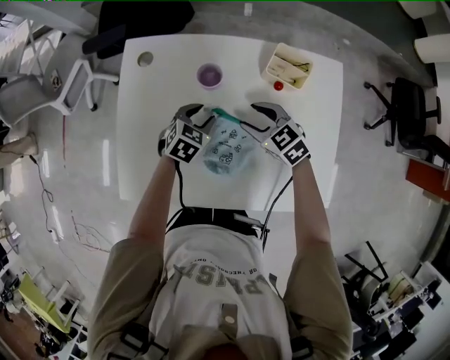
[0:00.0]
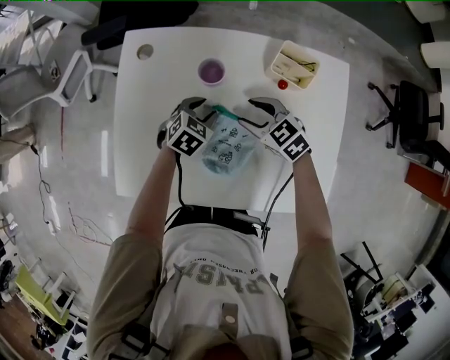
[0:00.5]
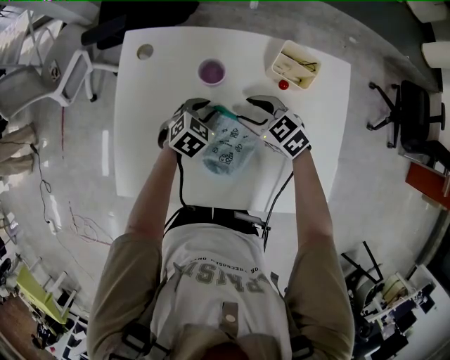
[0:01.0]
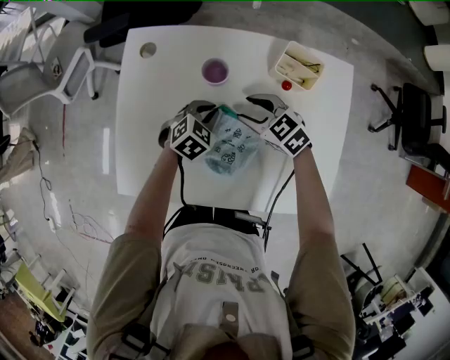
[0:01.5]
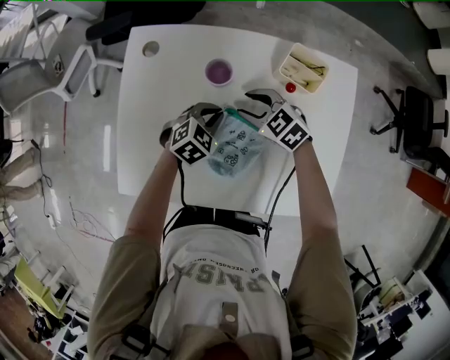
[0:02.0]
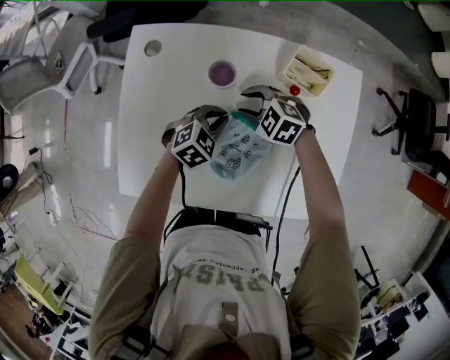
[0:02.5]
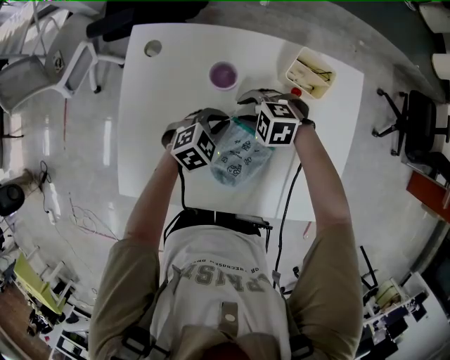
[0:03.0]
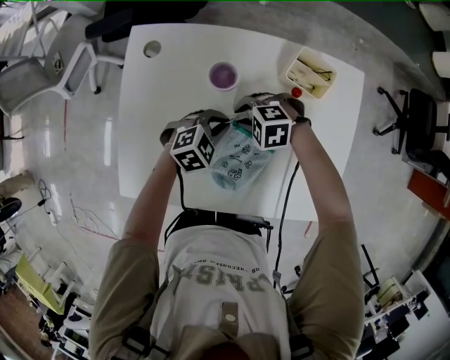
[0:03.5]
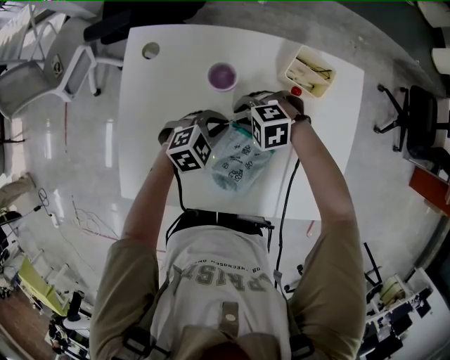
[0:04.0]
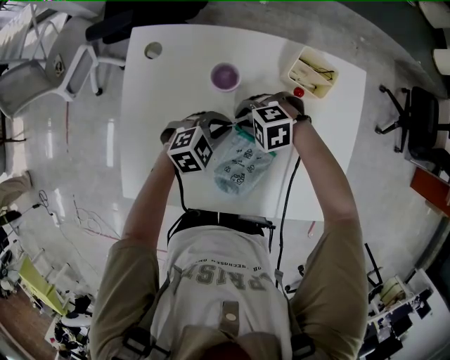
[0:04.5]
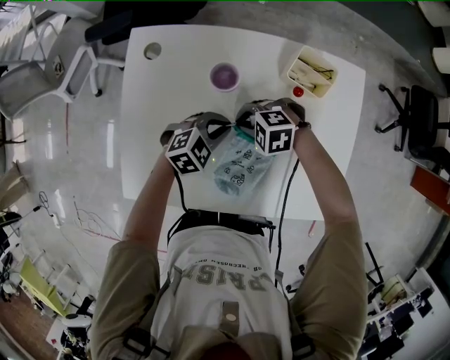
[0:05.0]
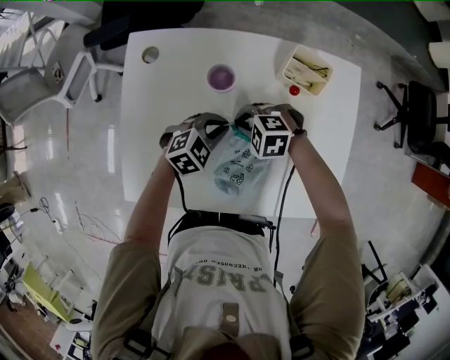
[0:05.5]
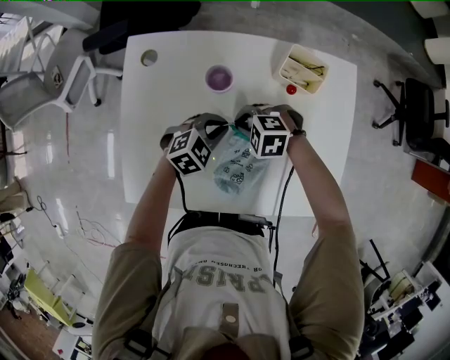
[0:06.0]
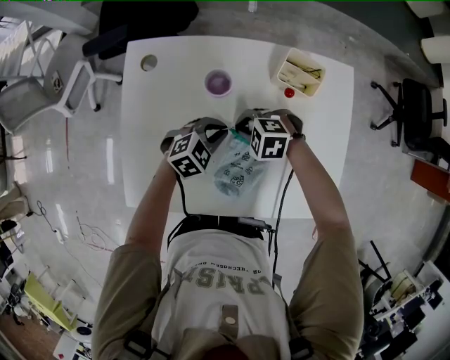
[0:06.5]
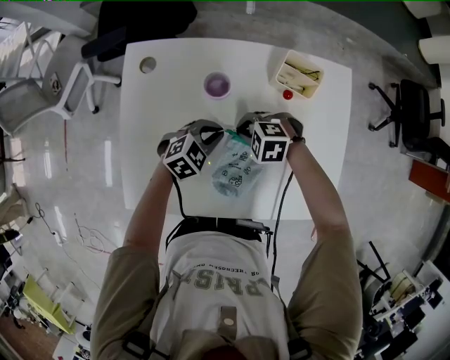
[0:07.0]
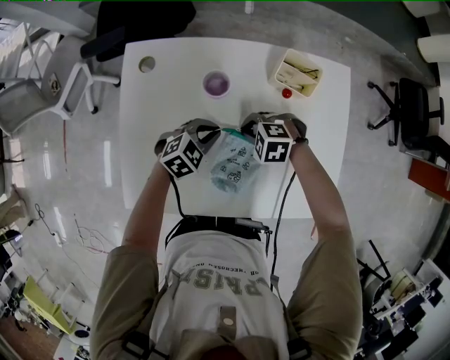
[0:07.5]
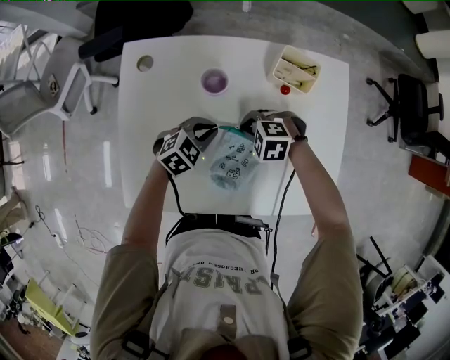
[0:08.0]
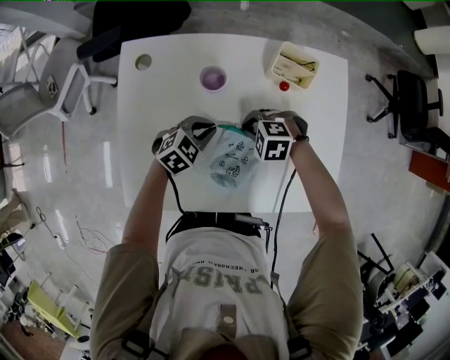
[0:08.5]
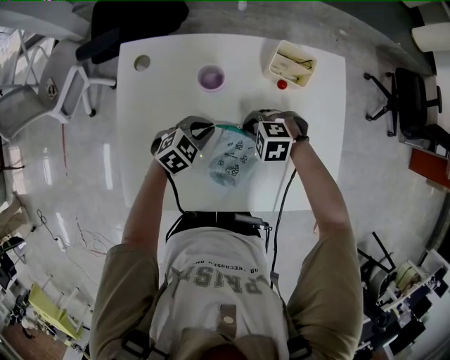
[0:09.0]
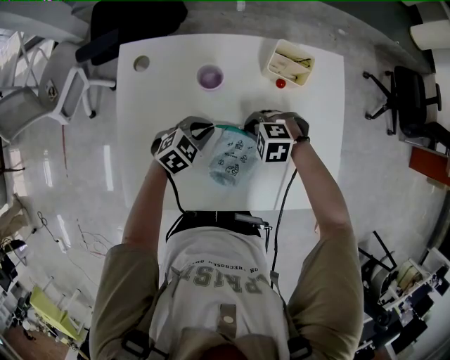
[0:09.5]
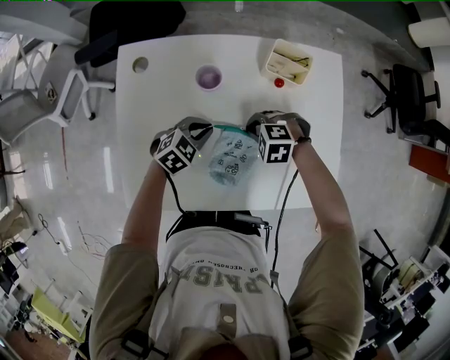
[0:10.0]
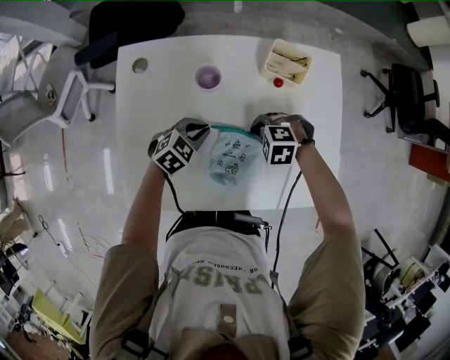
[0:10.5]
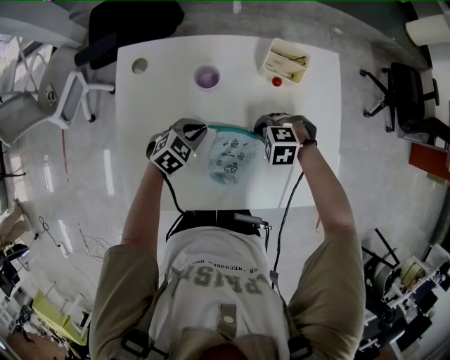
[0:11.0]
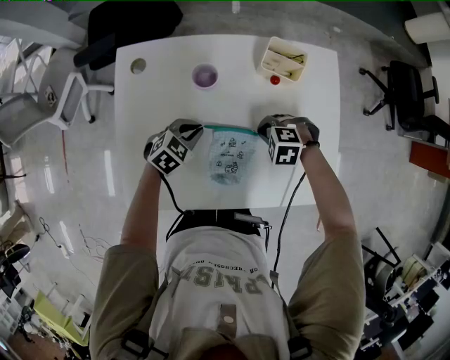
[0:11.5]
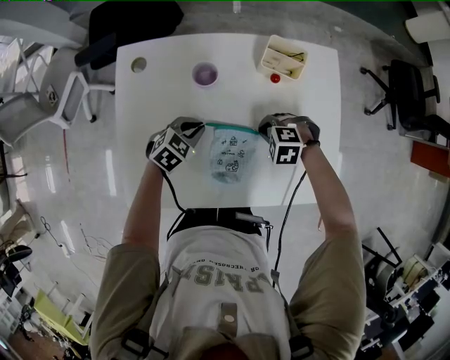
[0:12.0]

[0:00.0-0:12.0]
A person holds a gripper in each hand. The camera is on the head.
0:00.0 to 0:02.0: The left gripper closes, while the right gripper ends up about 5 cm from where it was.
0:02.0 to 0:04.0: The right gripper shifts by approximately 5 cm, turns by some 40 degrees, and closes up.
0:04.0 to 0:06.0: The right gripper closes its fingers.
0:06.0 to 0:08.0: The grippers make only small movements.
0:08.0 to 0:10.0: The grippers move only a little.
0:10.0 to 0:12.0: The right gripper changes place by approximately 5 cm.

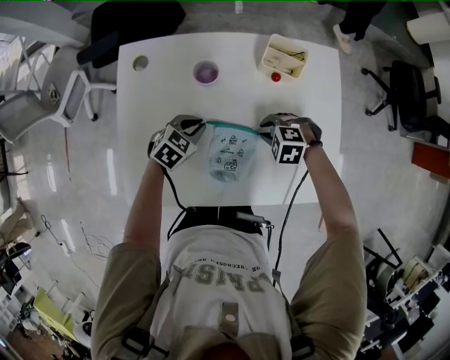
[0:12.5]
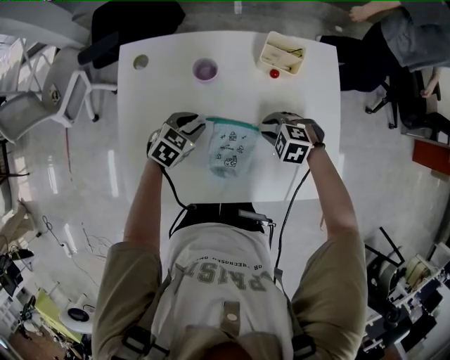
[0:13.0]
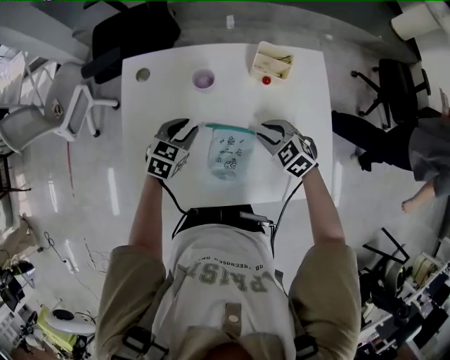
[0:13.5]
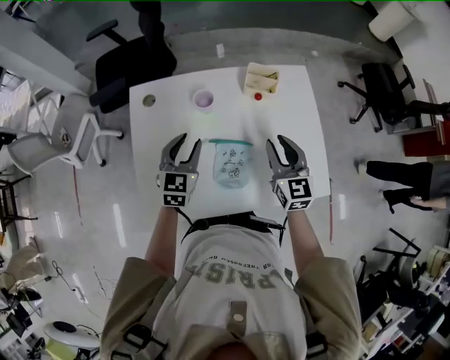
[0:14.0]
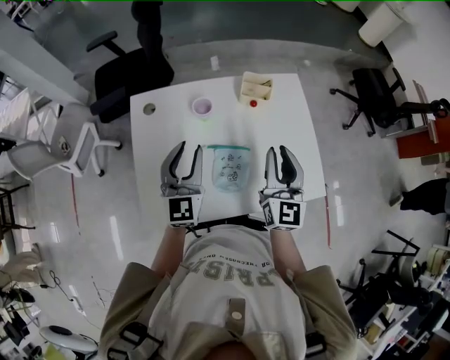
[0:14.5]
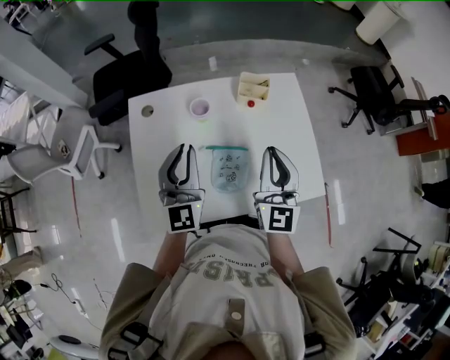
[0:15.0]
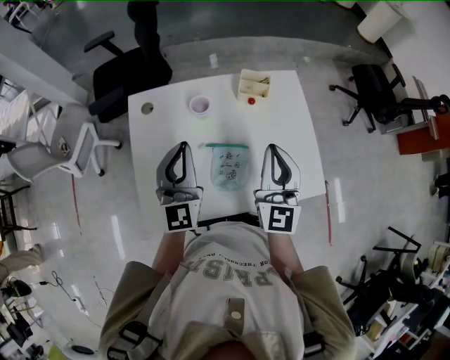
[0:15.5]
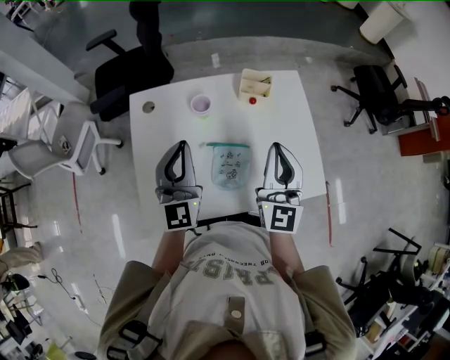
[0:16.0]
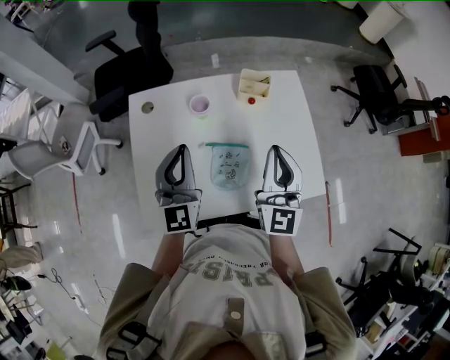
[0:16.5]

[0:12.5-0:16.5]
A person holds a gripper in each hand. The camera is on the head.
0:12.5 to 0:14.5: The two grippers go some 30 cm upward. The right gripper angles its fingers upward, by some 70 degrees. The left gripper angles its fingers upward, by roughly 50 degrees, and opens up.
0:14.5 to 0:16.5: The right gripper shifts about 5 cm upward, and closes its fingers, while the left gripper closes.

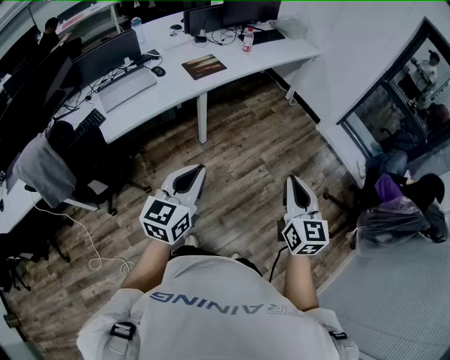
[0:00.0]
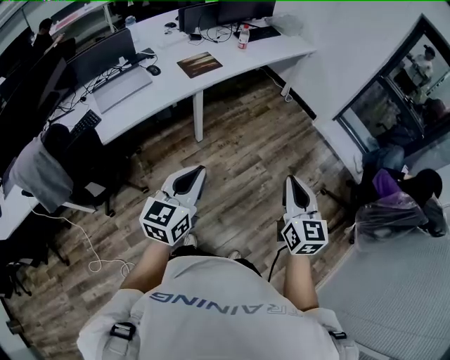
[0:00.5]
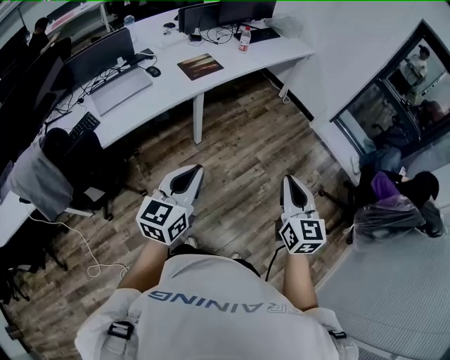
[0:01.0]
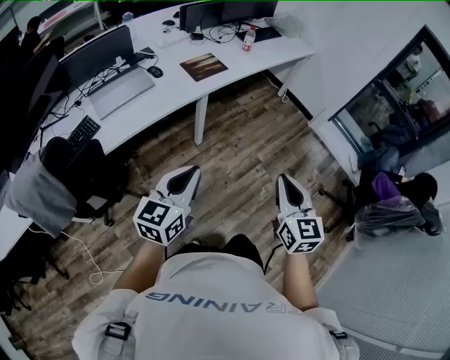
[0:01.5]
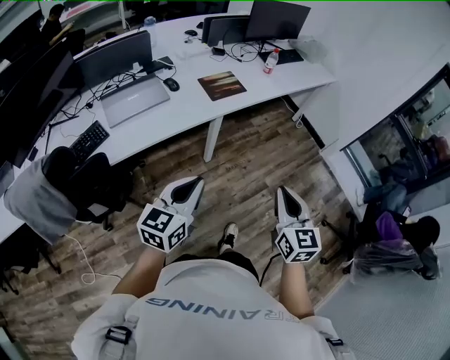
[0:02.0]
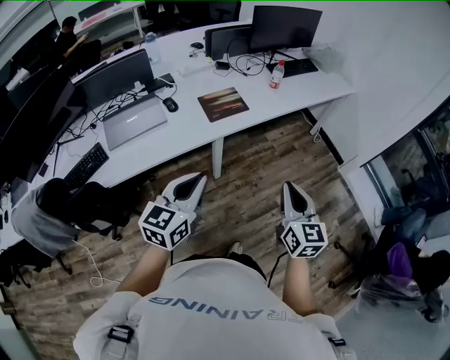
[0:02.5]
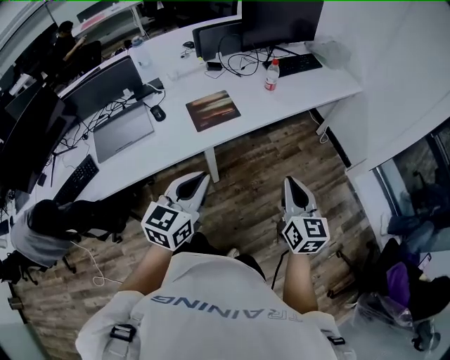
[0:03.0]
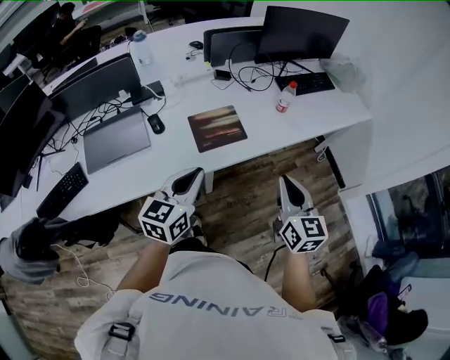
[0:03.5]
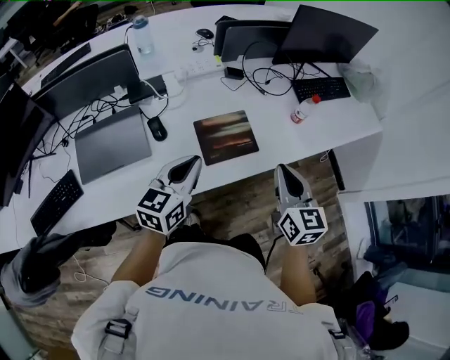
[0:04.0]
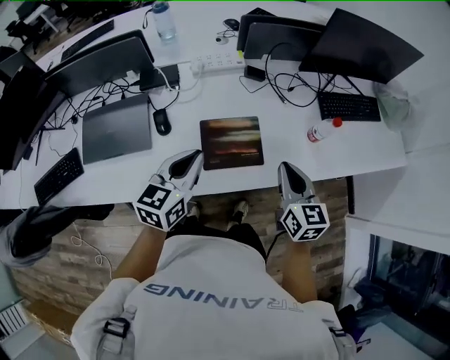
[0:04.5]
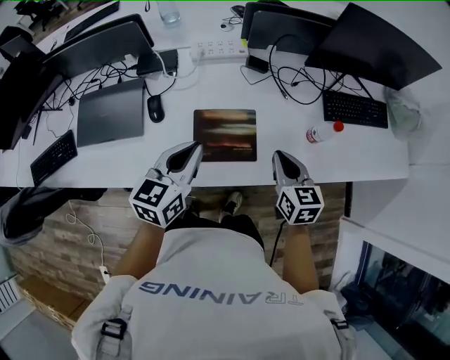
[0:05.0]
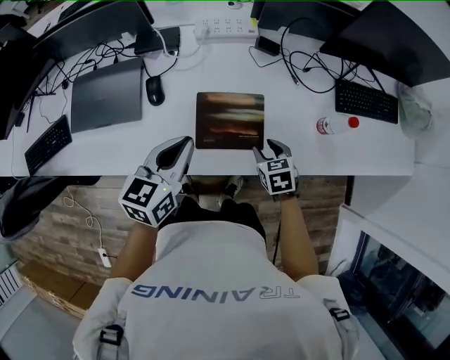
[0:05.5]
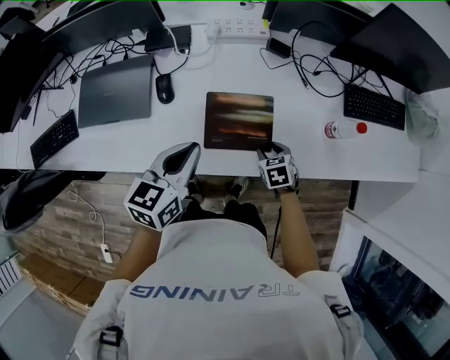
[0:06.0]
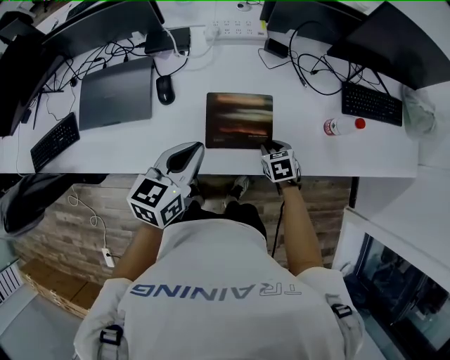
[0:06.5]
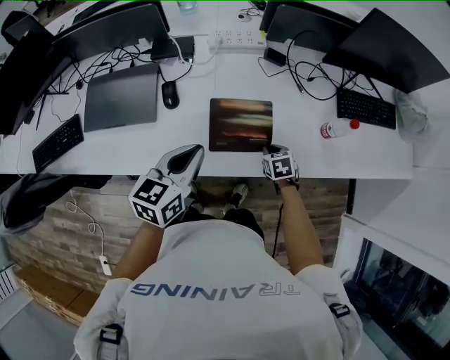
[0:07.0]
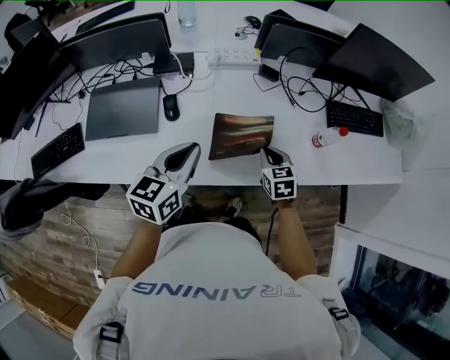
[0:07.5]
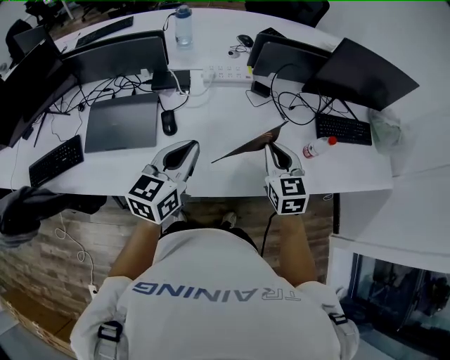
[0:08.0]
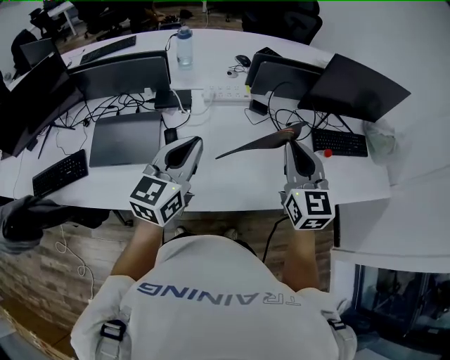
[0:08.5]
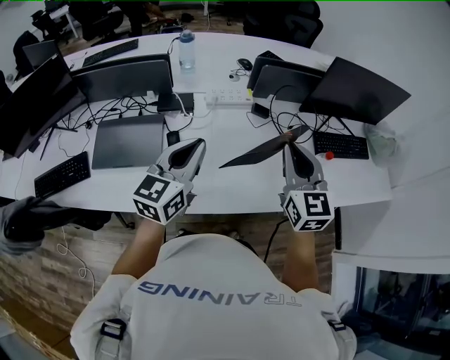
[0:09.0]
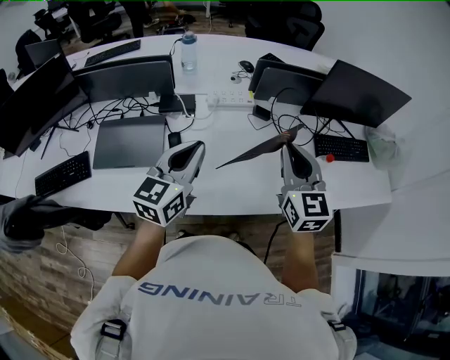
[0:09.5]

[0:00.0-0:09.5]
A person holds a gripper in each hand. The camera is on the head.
0:00.0 to 0:02.0: Both grippers travel together to the left and forward, approximately 20 cm.
0:02.0 to 0:04.0: The pair of grippers is taken forward, approximately 50 cm.
0:04.0 to 0:05.5: The right gripper heads downward and forward, covering about 30 cm, angles its fingers downward, by some 40 degrees, and opens up. Meanwhile the left gripper moves forward, approximately 5 cm, and swivels roughly 20 degrees.
0:05.5 to 0:07.5: The left gripper shifts by about 5 cm. Meanwhile the right gripper heads upward, covering roughly 5 cm, and closes.
0:07.5 to 0:09.5: The left gripper shifts approximately 10 cm upward. The right gripper is displaced upward by some 30 cm, and tips its fingers upward by some 40 degrees.

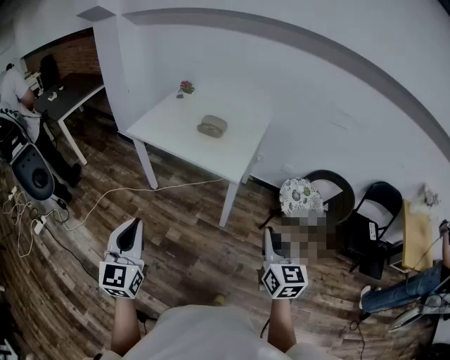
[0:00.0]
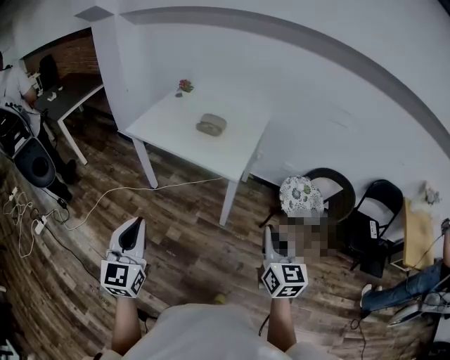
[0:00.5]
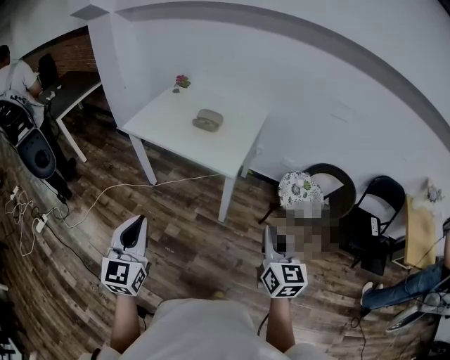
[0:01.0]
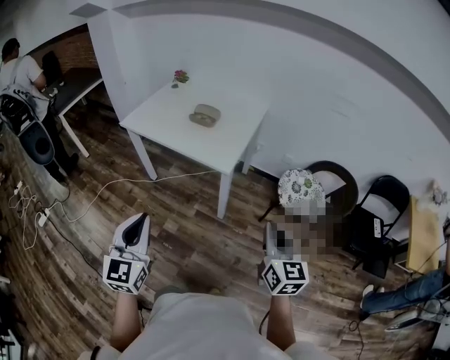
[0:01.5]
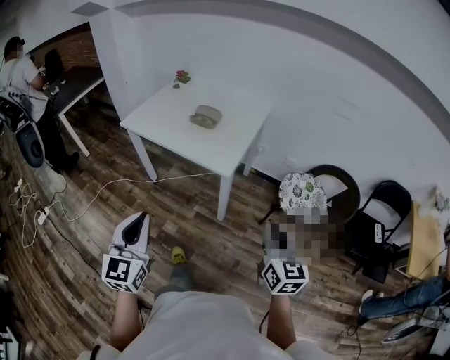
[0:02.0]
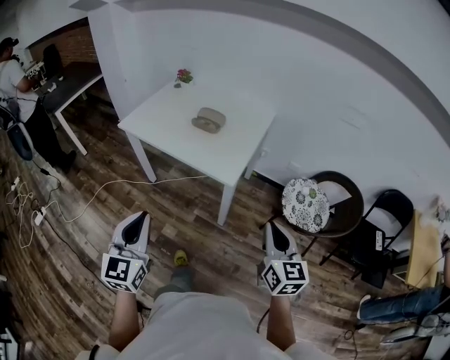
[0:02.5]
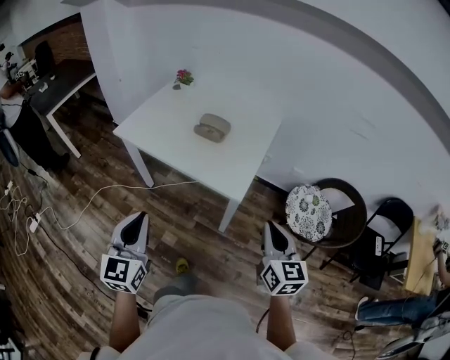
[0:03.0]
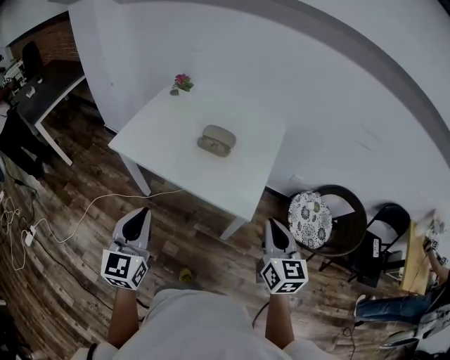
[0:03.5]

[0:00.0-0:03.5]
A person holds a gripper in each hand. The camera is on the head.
0:00.0 to 0:02.0: The right gripper heads to the right and forward, covering approximately 10 cm. The left gripper is displaced to the right by about 10 cm.
0:02.0 to 0:03.5: The two grippers go approximately 30 cm forward and to the left.
